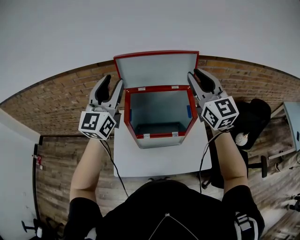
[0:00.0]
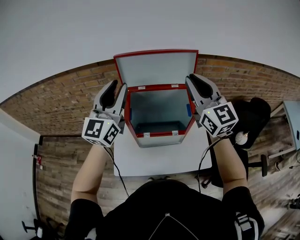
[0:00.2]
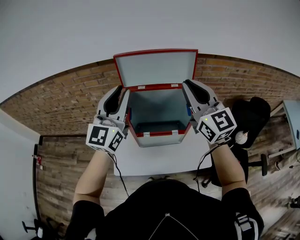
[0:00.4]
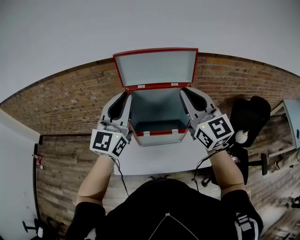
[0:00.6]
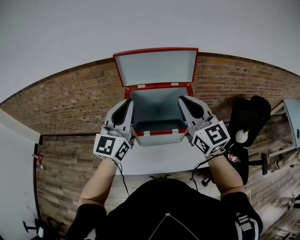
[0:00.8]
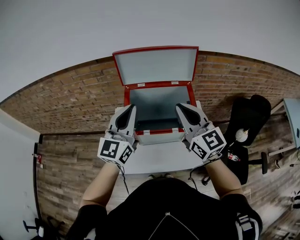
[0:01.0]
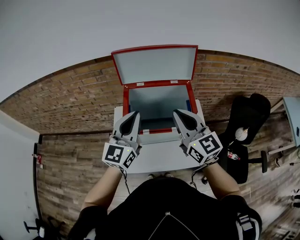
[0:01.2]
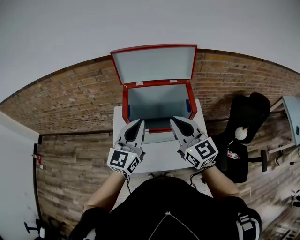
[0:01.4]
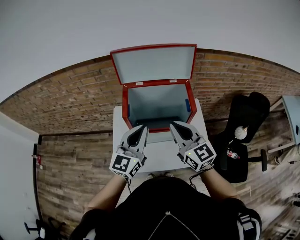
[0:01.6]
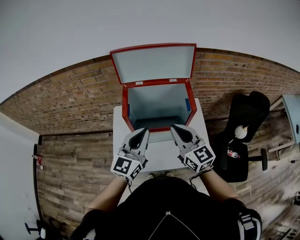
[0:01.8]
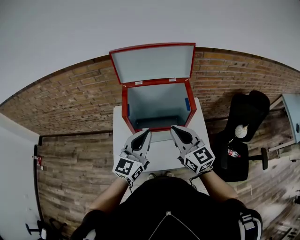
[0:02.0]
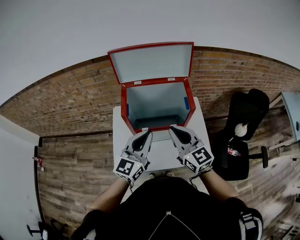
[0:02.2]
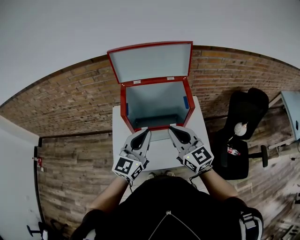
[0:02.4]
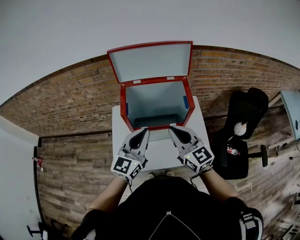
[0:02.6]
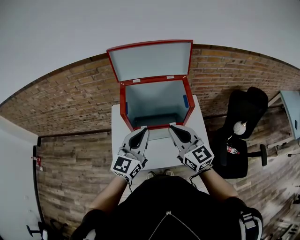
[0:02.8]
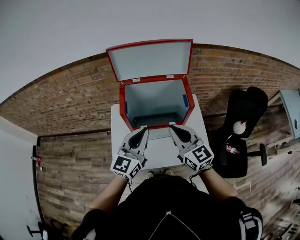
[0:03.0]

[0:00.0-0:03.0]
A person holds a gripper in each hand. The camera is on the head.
0:00.0 to 0:01.6: The left gripper shifts about 20 cm downward, backward and to the right, and closes up. Meanwhile the right gripper travels downward, backward and to the left by about 20 cm.
0:01.6 to 0:03.0: The grippers stay close to where they were, moving slightly.

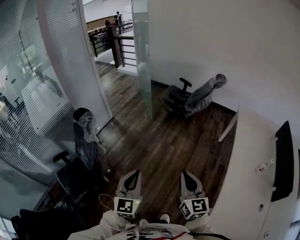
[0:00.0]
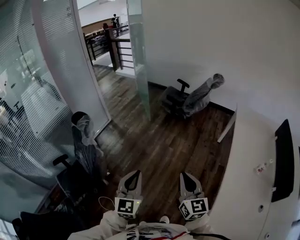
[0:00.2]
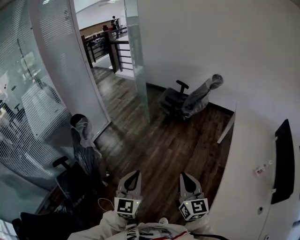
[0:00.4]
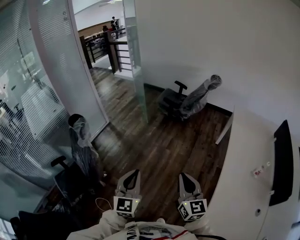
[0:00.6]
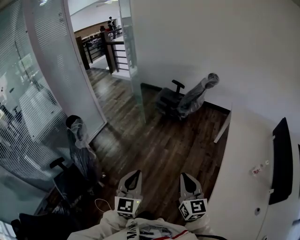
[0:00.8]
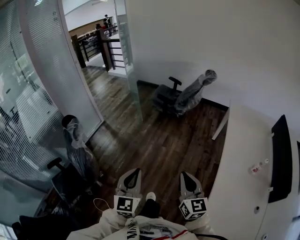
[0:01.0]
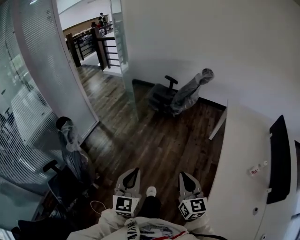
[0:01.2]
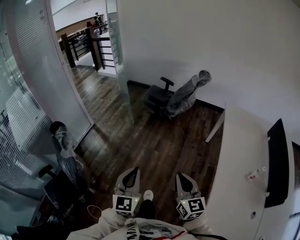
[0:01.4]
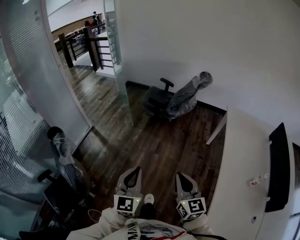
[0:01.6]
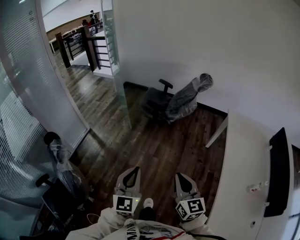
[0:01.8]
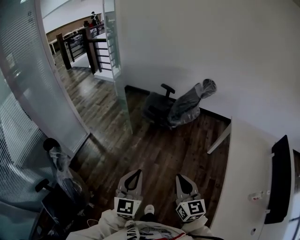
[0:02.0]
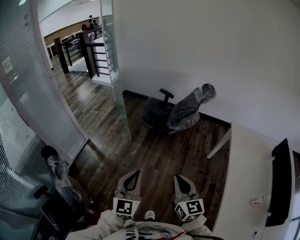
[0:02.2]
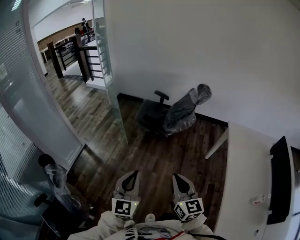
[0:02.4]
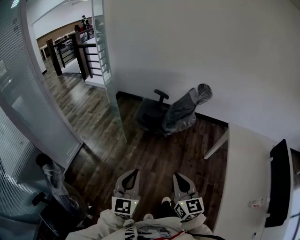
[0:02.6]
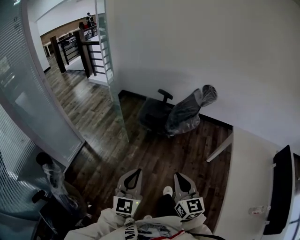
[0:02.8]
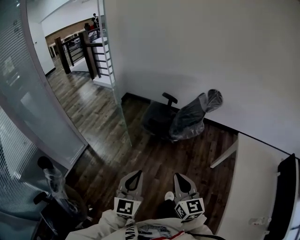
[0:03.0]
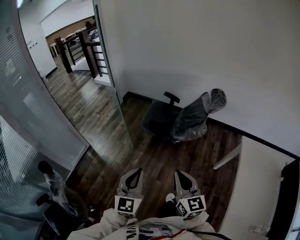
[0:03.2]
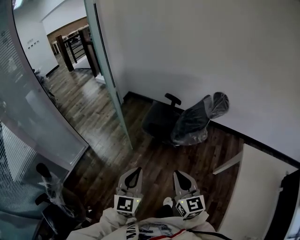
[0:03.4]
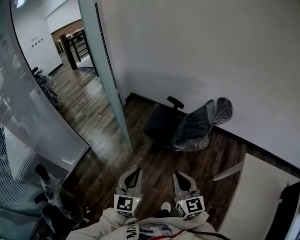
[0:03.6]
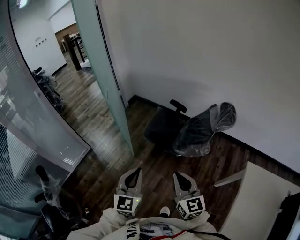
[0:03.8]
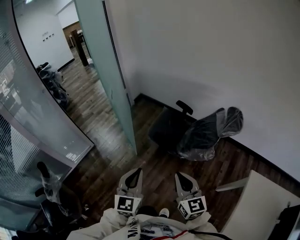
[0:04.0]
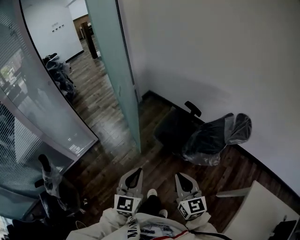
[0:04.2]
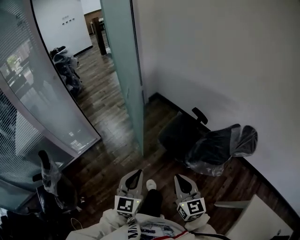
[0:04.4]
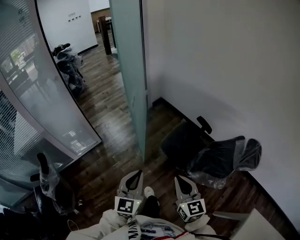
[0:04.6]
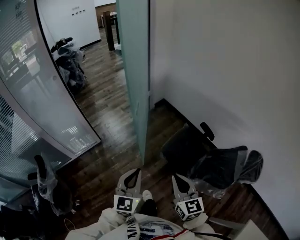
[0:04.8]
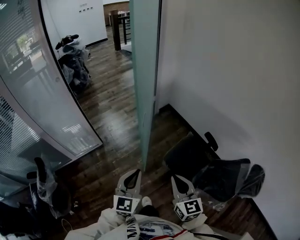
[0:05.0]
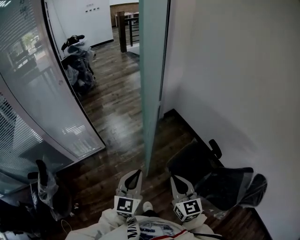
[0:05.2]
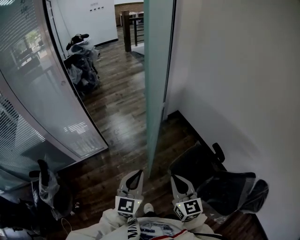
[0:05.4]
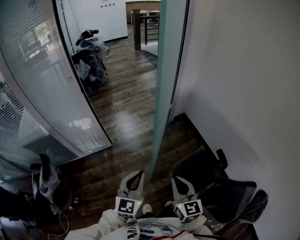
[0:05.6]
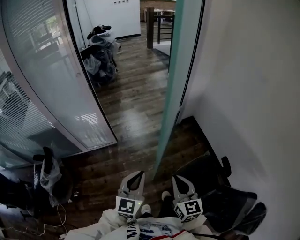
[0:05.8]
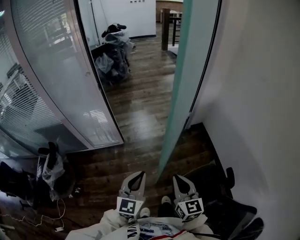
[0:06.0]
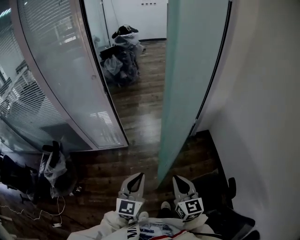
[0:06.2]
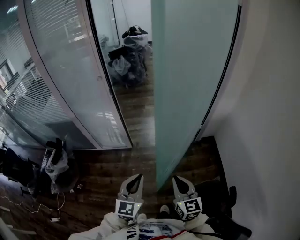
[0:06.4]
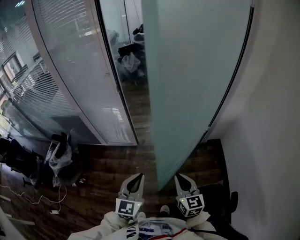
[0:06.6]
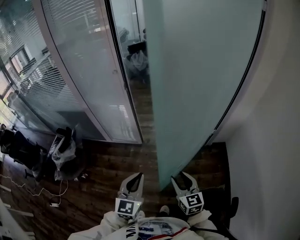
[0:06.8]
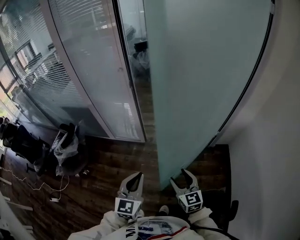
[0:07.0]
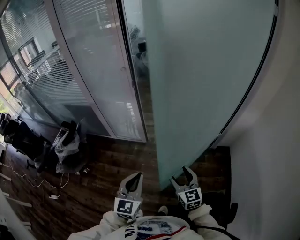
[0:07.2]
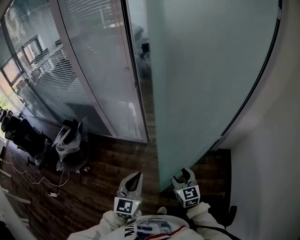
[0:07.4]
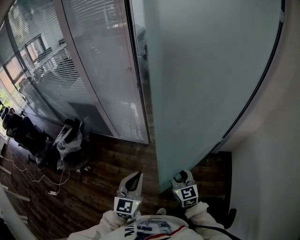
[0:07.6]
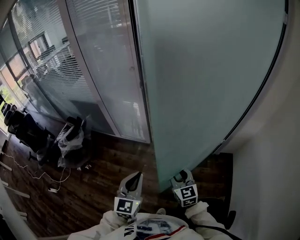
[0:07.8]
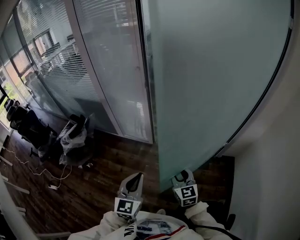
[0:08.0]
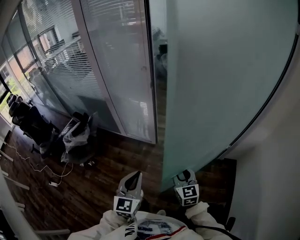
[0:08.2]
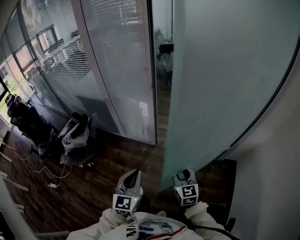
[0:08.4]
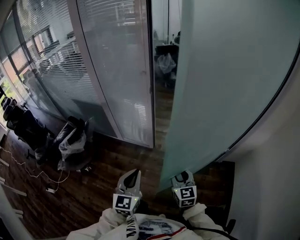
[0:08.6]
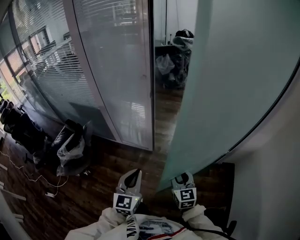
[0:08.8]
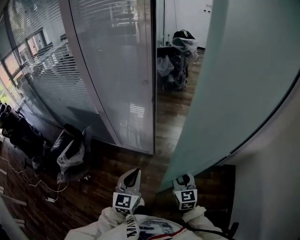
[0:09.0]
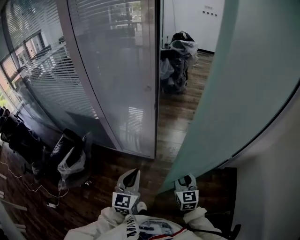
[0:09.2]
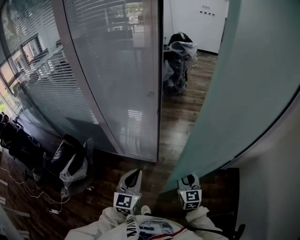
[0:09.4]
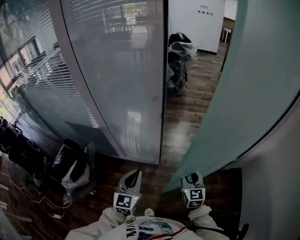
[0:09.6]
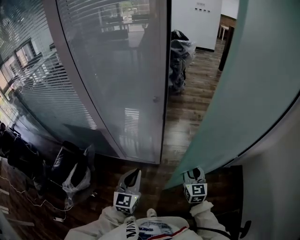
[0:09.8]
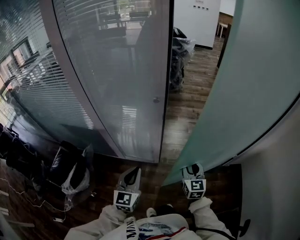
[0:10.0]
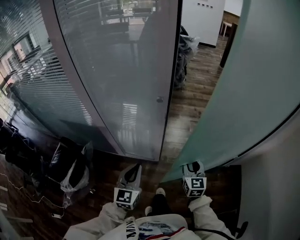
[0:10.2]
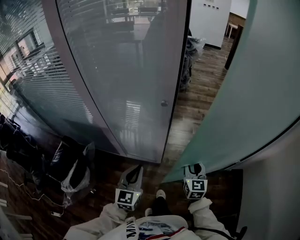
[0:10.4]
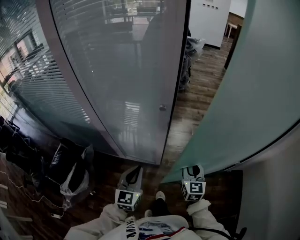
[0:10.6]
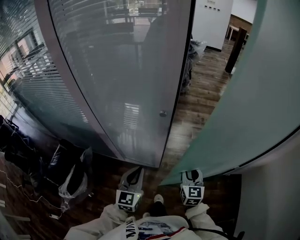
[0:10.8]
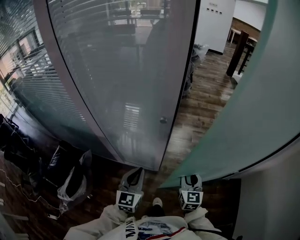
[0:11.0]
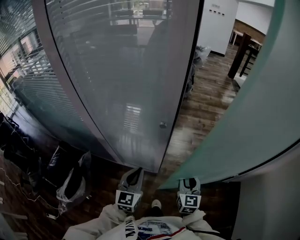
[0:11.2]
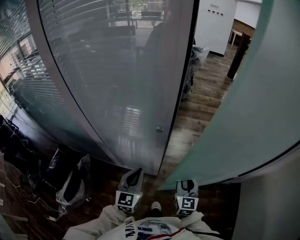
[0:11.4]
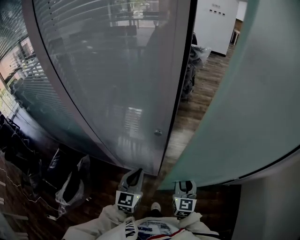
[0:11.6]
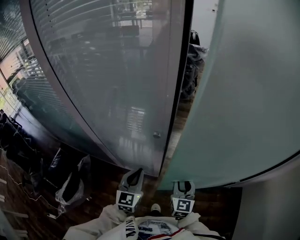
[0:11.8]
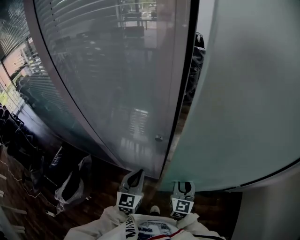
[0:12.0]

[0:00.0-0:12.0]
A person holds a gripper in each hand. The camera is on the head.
0:00.0 to 0:01.6: The grippers both shift forward and to the right by approximately 20 cm.
0:01.6 to 0:03.0: Both grippers move forward, roughly 30 cm.
0:03.0 to 0:04.4: Both grippers move forward, some 30 cm. The right gripper swivels approximately 30 degrees, while the left gripper swivels some 20 degrees.
0:04.4 to 0:06.0: The right gripper moves about 40 cm, and changes its angle by about 30 degrees, while the left gripper shifts by some 35 cm, and turns by some 30 degrees.
0:06.0 to 0:07.6: The right gripper moves about 20 cm, rotates approximately 30 degrees, and opens up, while the left gripper changes place by some 5 cm, and changes its angle by about 30 degrees.
0:07.6 to 0:09.0: Both grippers move forward and to the left, about 15 cm.
0:09.0 to 0:10.4: The left gripper travels forward and to the left by roughly 20 cm, while the right gripper shifts some 20 cm forward.
0:10.4 to 0:12.0: The right gripper is displaced forward by approximately 10 cm. The left gripper heads forward, covering approximately 15 cm.

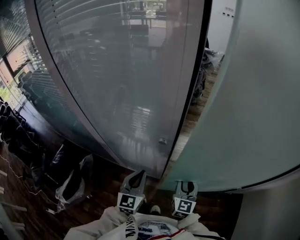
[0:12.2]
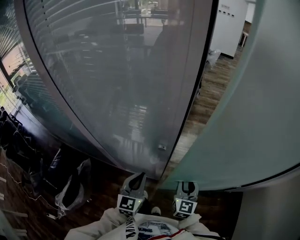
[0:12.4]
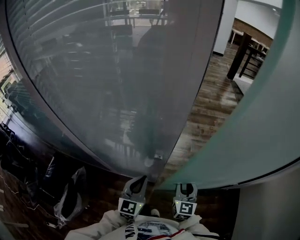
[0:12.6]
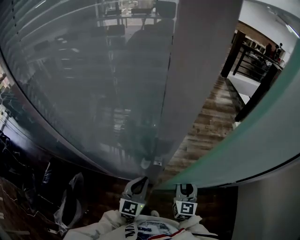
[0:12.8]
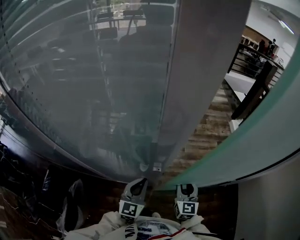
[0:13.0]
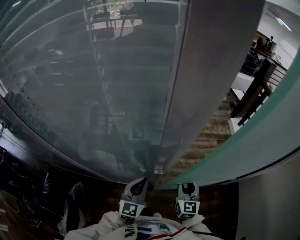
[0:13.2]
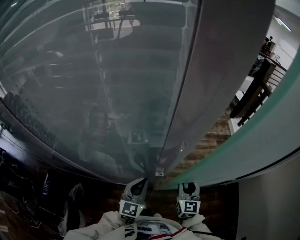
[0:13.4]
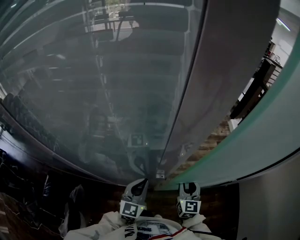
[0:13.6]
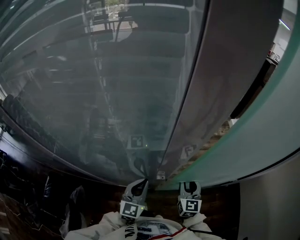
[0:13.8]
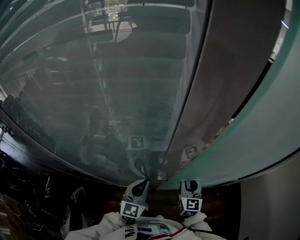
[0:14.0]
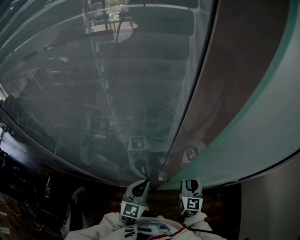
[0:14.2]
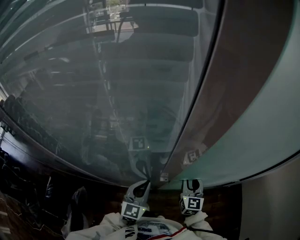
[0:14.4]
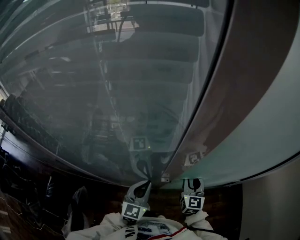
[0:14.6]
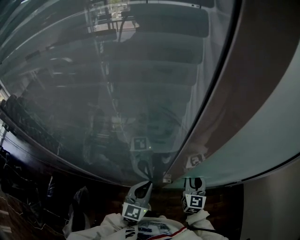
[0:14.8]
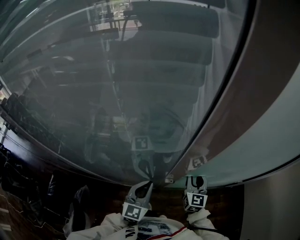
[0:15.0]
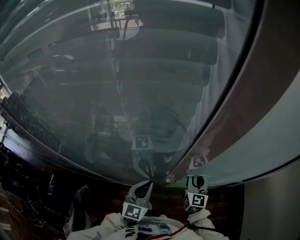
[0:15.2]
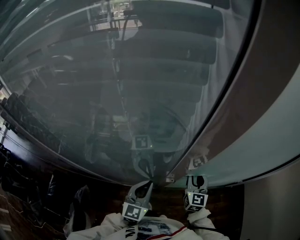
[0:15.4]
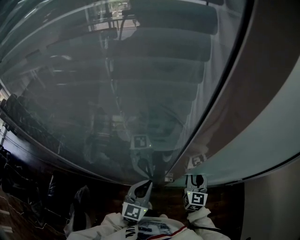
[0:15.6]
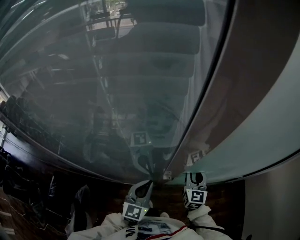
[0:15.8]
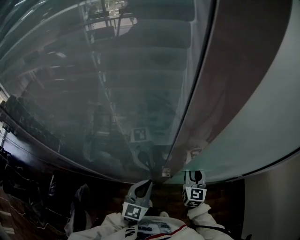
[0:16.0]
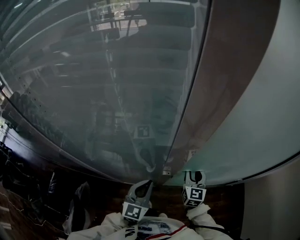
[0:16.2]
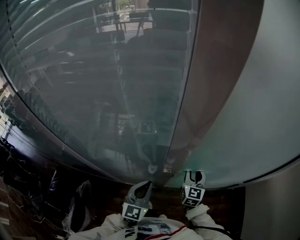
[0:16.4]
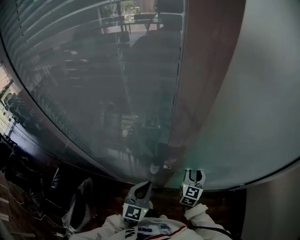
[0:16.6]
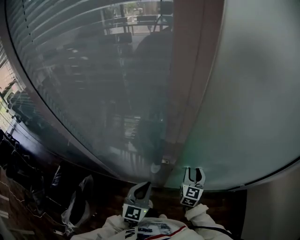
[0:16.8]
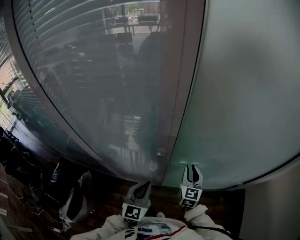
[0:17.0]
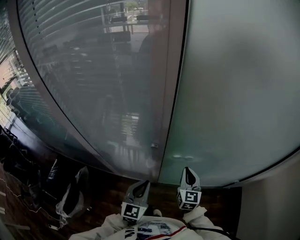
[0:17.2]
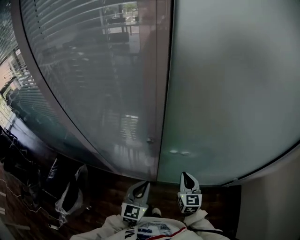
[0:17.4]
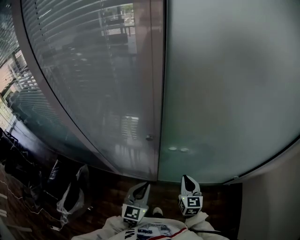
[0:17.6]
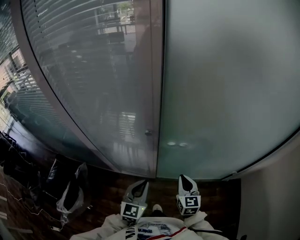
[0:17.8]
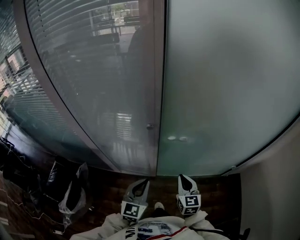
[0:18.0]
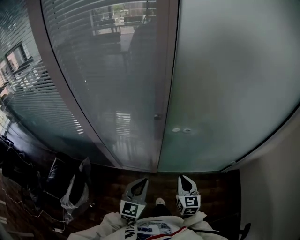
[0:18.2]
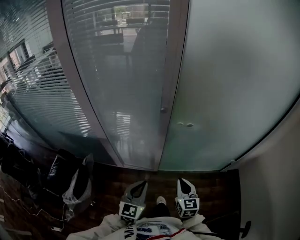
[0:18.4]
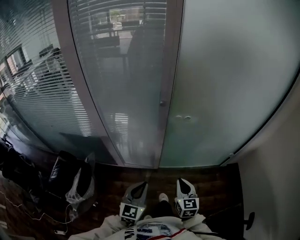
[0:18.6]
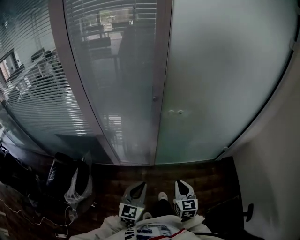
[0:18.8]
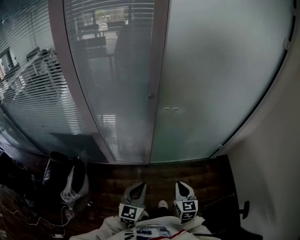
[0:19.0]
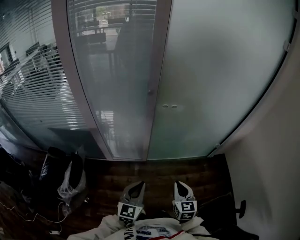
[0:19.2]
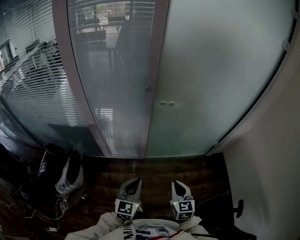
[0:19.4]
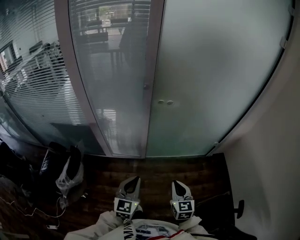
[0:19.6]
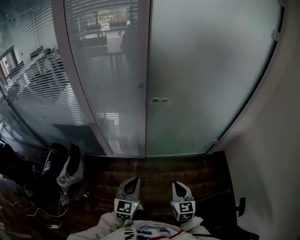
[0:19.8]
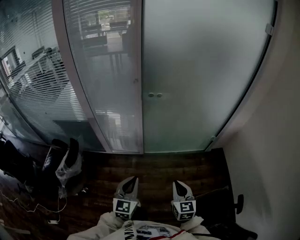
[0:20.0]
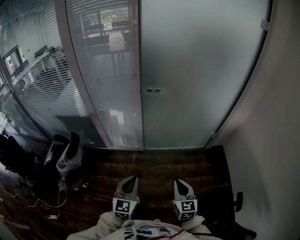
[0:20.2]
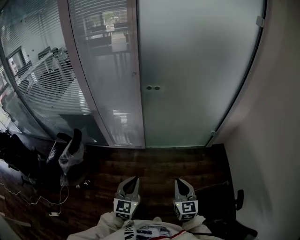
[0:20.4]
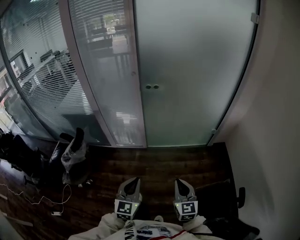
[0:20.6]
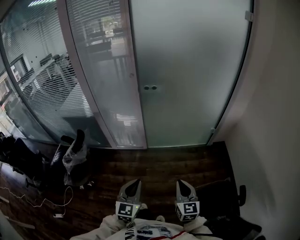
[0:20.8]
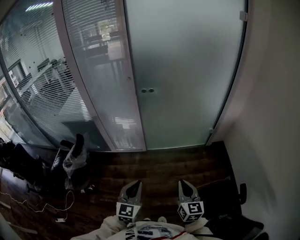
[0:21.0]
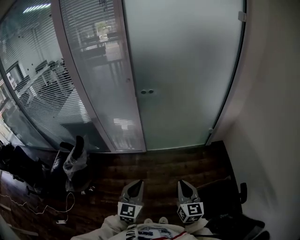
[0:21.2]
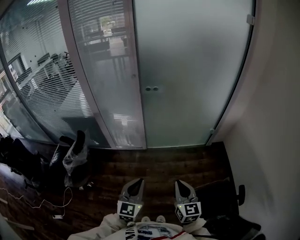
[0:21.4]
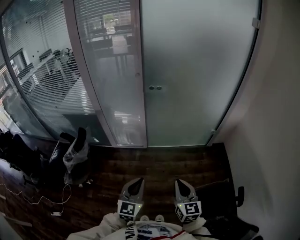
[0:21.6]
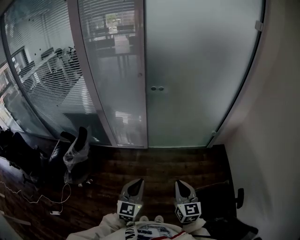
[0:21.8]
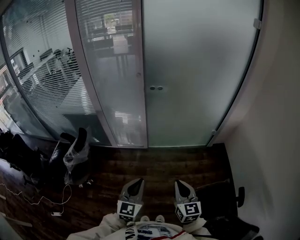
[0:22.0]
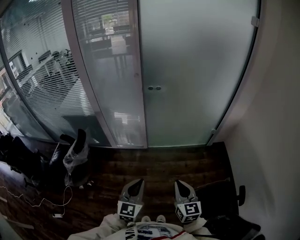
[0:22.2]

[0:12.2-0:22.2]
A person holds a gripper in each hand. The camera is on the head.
0:12.2 to 0:13.6: Both grippers move forward, about 10 cm.
0:13.6 to 0:15.0: The right gripper is displaced forward by roughly 5 cm.
0:15.0 to 0:16.4: The grippers move only a little.
0:16.4 to 0:18.0: Both grippers travel together backward, roughly 20 cm. The right gripper closes.
0:18.0 to 0:19.4: The grippers both shift backward by approximately 25 cm.
0:19.4 to 0:20.8: The two grippers go some 25 cm backward and to the right.
0:20.8 to 0:22.2: The right gripper shifts by approximately 5 cm.
